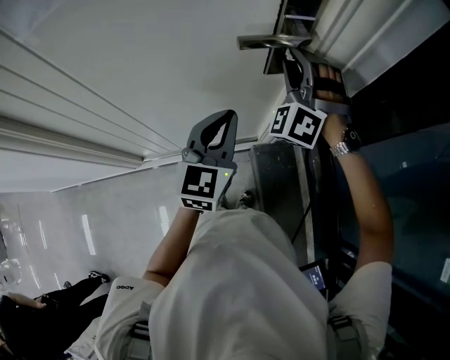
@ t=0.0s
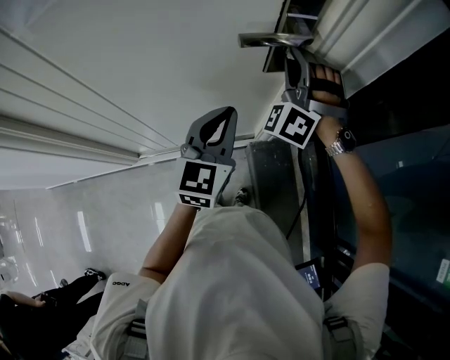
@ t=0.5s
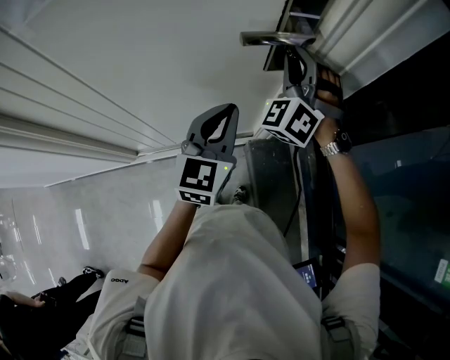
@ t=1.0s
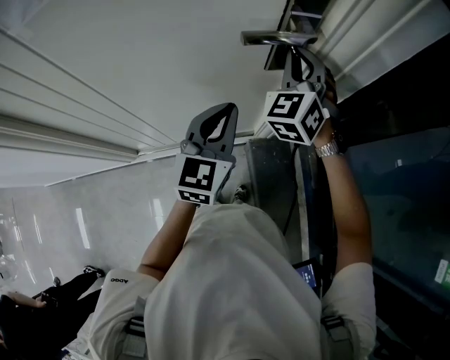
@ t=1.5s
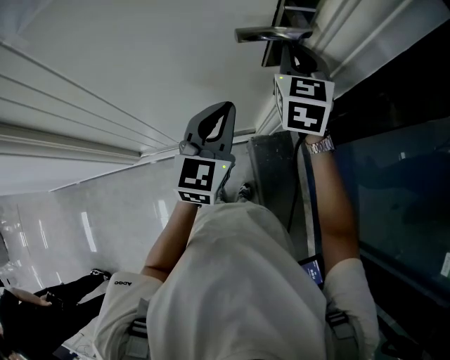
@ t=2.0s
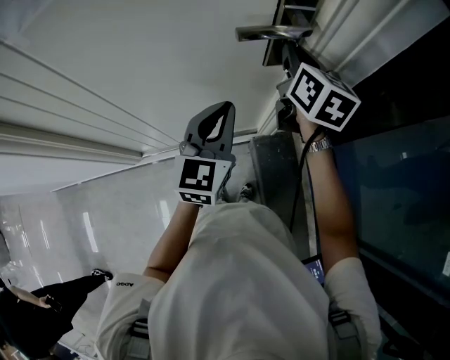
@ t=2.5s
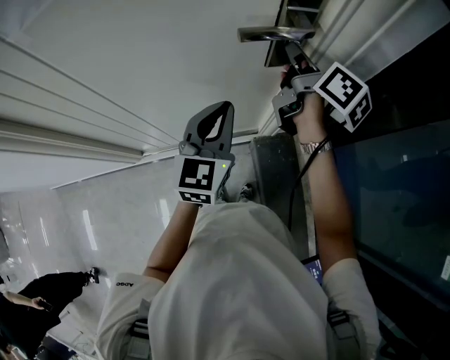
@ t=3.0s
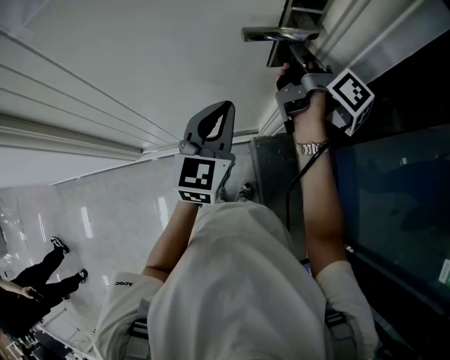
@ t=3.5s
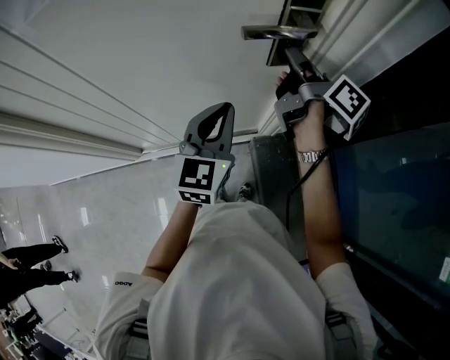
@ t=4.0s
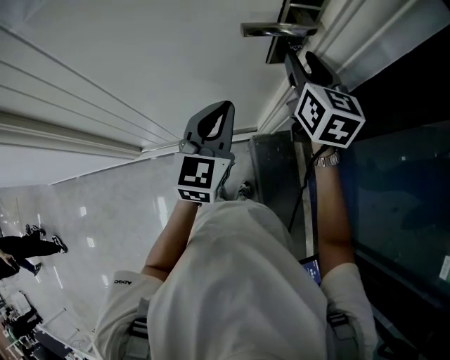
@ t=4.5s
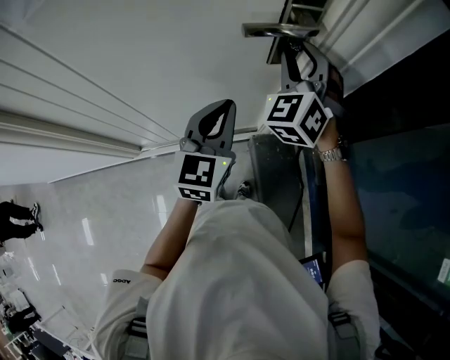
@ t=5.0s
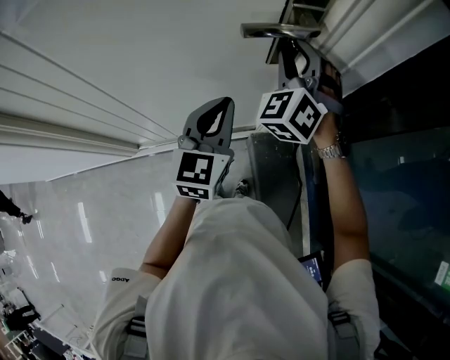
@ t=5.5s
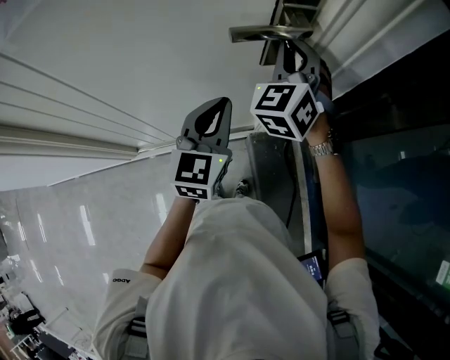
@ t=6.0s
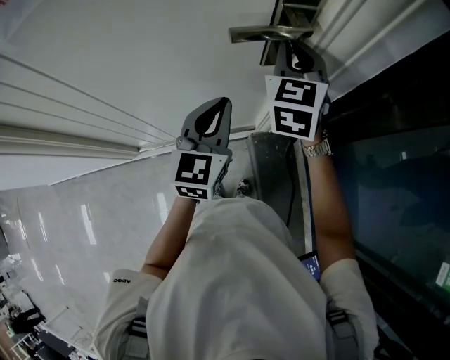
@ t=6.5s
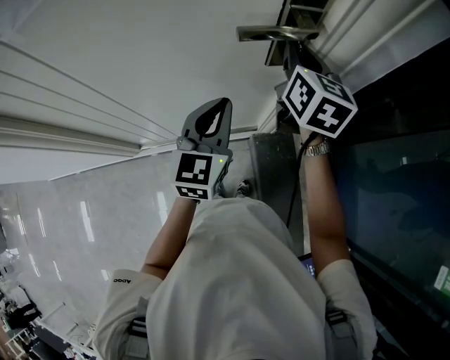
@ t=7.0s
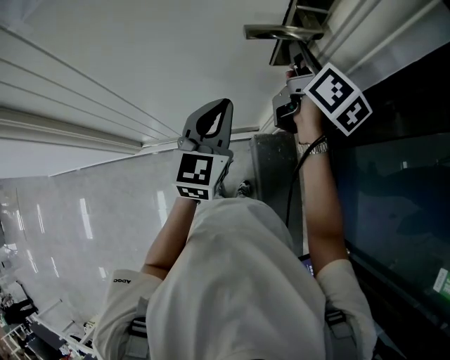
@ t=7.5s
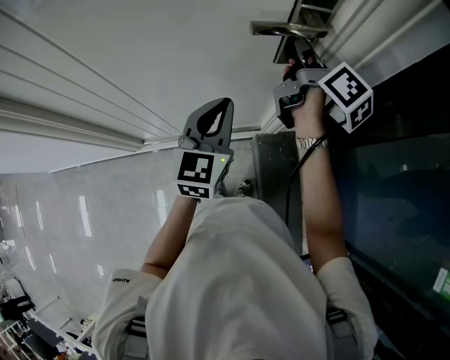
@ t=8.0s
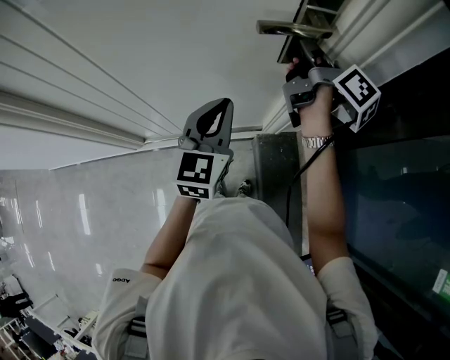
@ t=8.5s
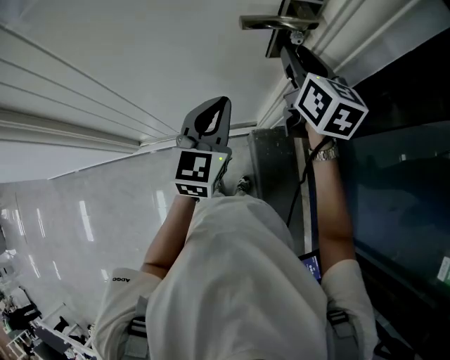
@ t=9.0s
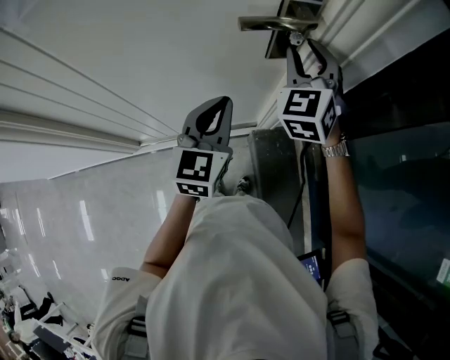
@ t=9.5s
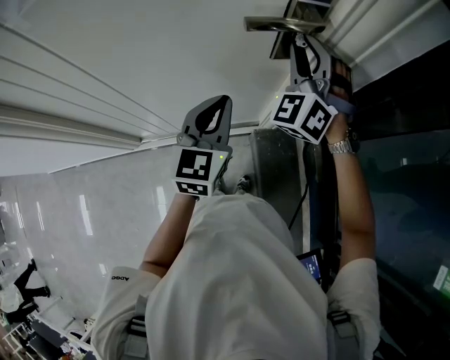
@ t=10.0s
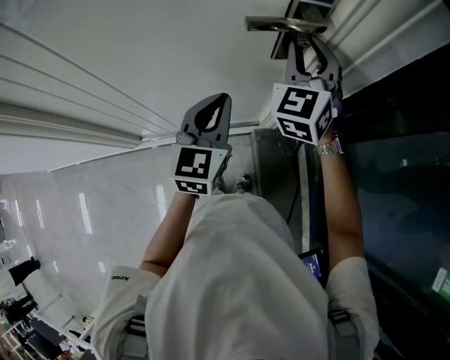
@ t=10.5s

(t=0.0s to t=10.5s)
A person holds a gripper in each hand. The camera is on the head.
t=0.0s - t=2.0s: The right gripper rolls clockwise, seen from behind, by about 70 degrees, and closes up.
t=2.0s - t=4.0s: The right gripper rotates around the line of its fingers by roughly 80 degrees, clockwise from behind.
t=4.0s - t=6.5s: The right gripper rotates around the line of its fingers by roughly 90 degrees, counterclockwise from behind.
t=6.5s - t=8.5s: The right gripper twists about 90 degrees clockwise, seen from behind.
t=8.5s - t=10.5s: The right gripper rotates around the line of its fingers by roughly 100 degrees, counterclockwise from behind, and opens.

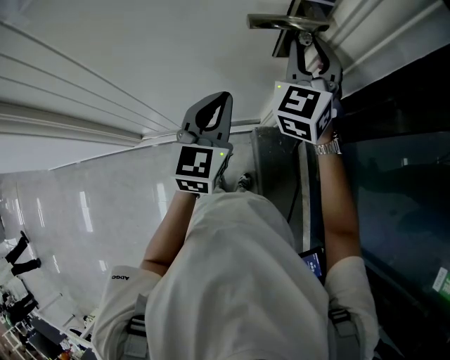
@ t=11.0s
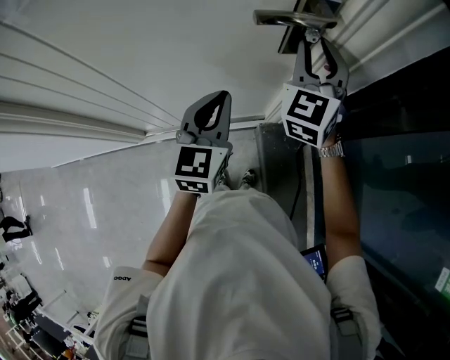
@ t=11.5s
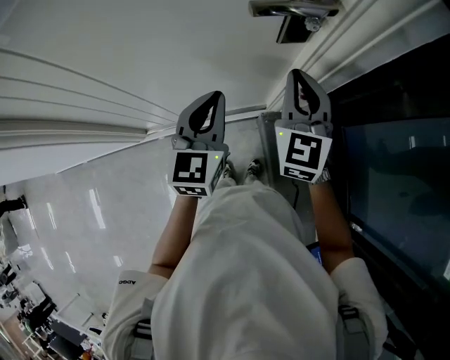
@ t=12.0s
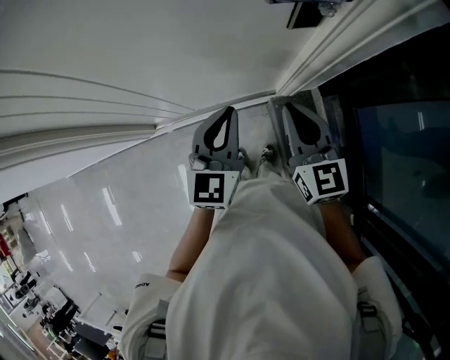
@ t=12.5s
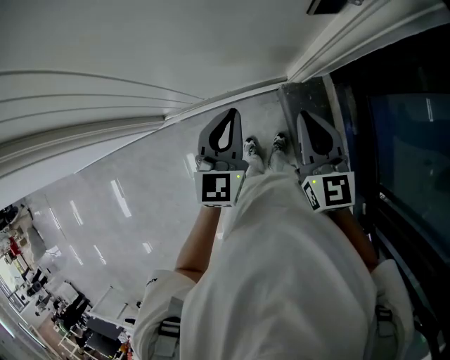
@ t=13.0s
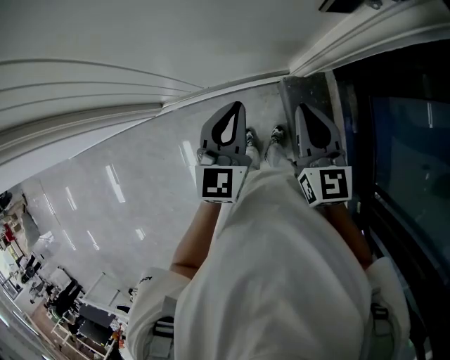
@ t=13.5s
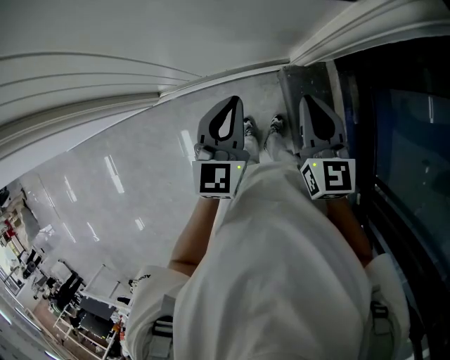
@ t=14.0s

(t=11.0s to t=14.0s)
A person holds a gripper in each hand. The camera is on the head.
t=11.0s - t=12.5s: The right gripper shifts some 20 cm backward and downward, swivels some 40 degrees, and closes its fingers, while the left gripper moves approximately 5 cm.
t=12.5s - t=14.0s: The grippers both shift downward by some 5 cm.

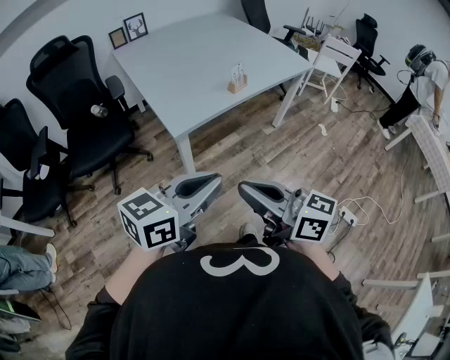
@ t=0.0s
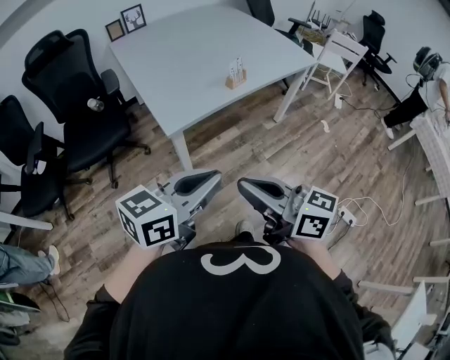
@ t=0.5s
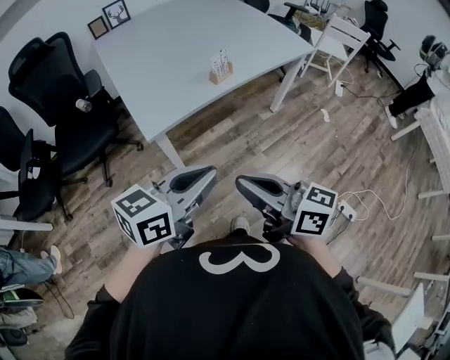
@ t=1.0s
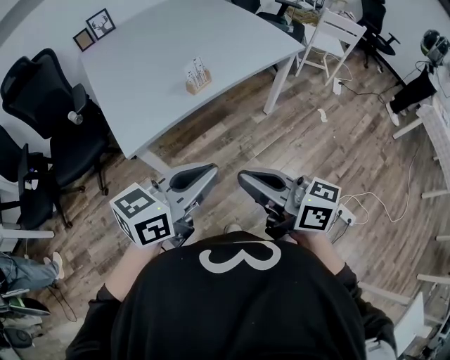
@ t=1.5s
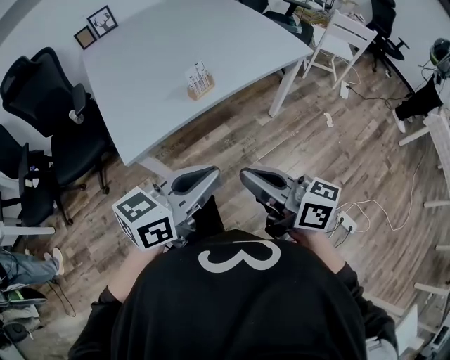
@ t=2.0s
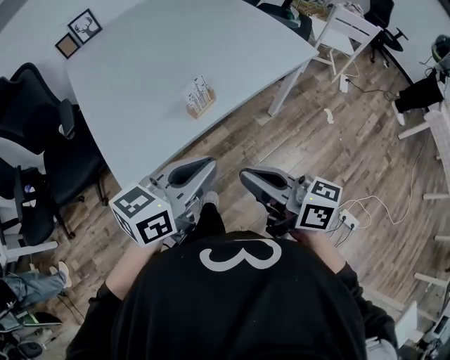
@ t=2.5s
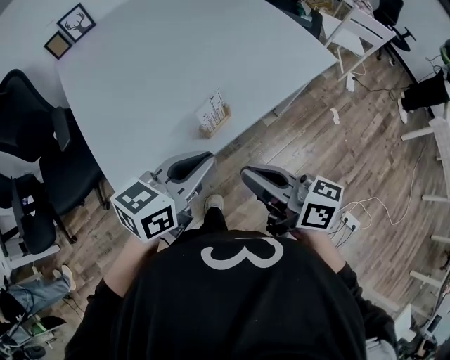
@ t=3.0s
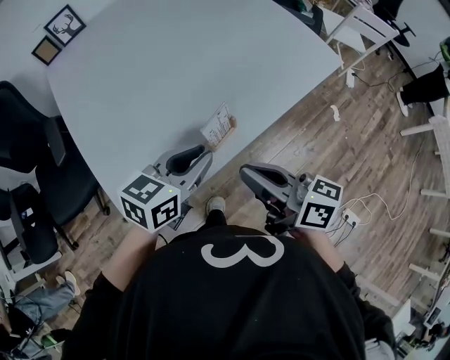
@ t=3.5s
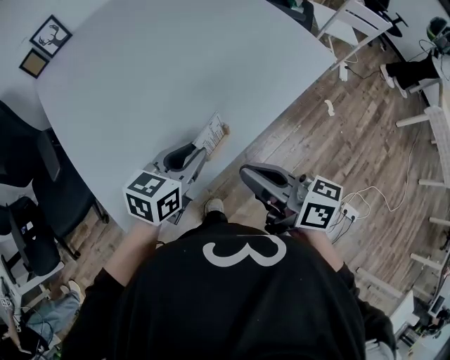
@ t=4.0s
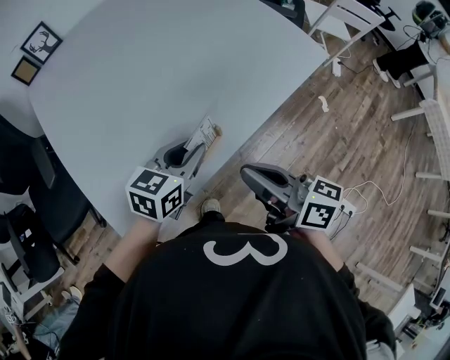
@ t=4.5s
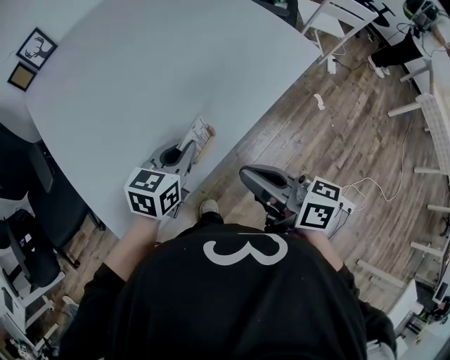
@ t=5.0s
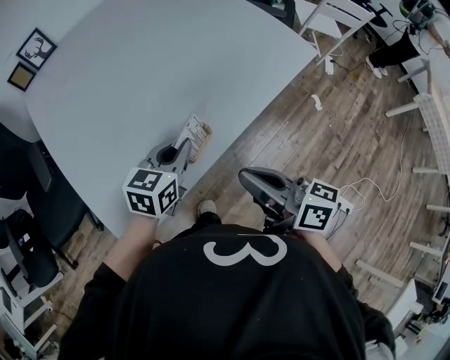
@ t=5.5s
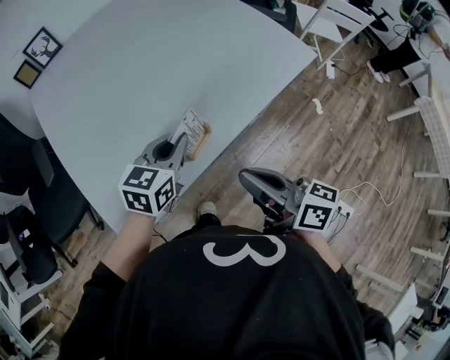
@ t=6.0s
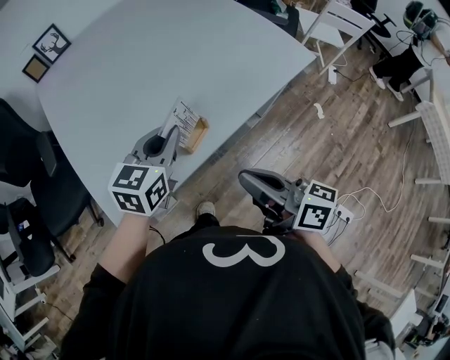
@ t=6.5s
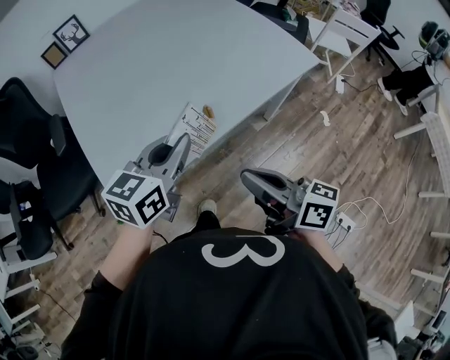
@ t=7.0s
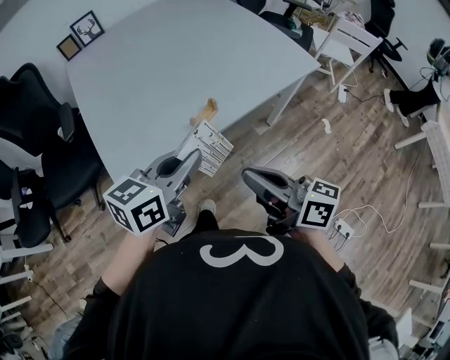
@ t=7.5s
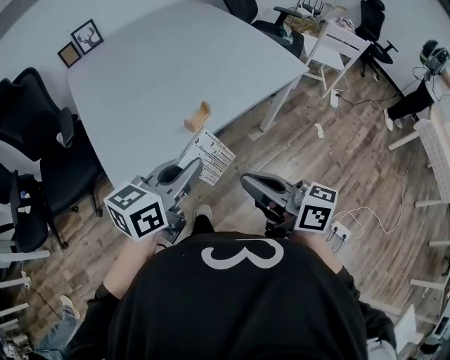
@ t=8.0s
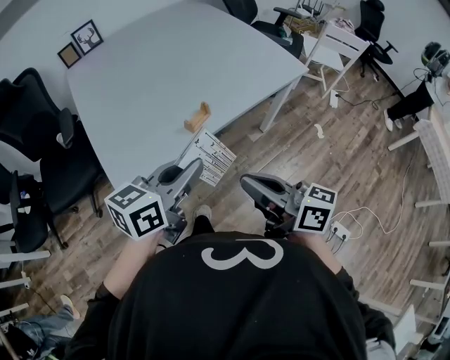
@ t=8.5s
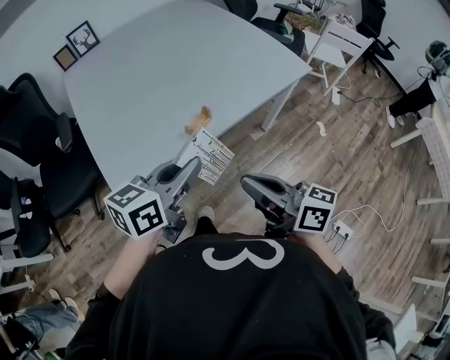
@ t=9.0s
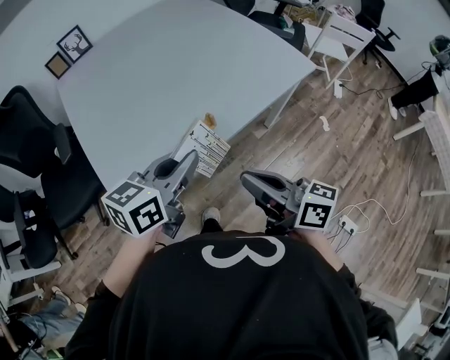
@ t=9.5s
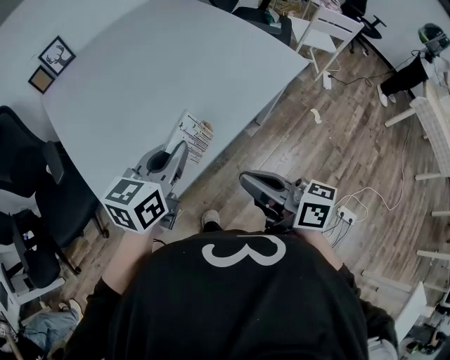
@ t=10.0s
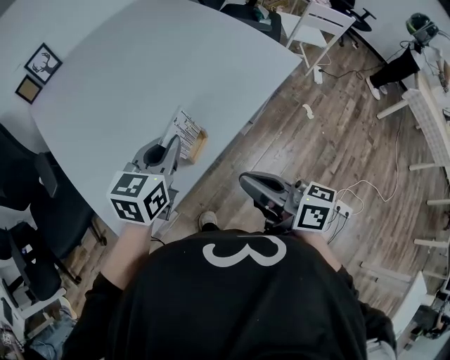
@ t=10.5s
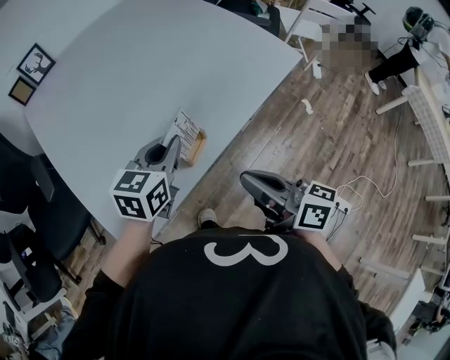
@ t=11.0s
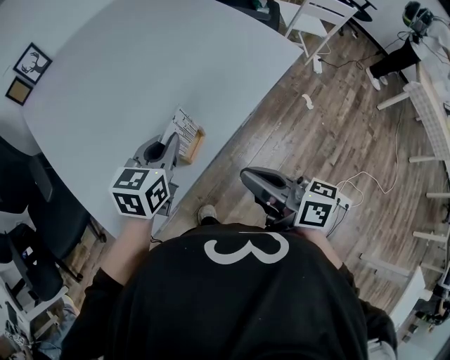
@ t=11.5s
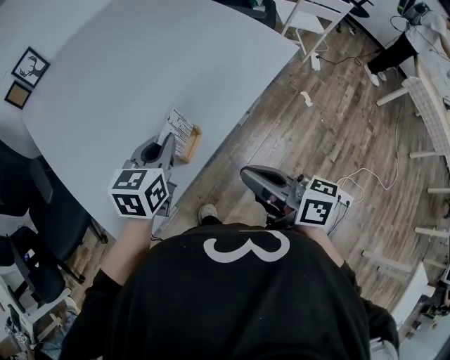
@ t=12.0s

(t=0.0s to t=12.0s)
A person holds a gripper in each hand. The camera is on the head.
t=0.0s - t=2.0s: Both grippers move to the right and forward, some 25 cm.
t=2.0s - t=4.0s: The grippers both shift forward by roughly 30 cm.
t=4.0s - t=6.0s: The right gripper ends up some 5 cm from where it was.
t=6.0s - t=8.0s: The right gripper moves backward, roughly 15 cm; the left gripper travels backward and upward by approximately 25 cm.
t=8.0s - t=10.0s: The grippers both shift forward by about 15 cm.
t=10.0s - t=12.0s: The left gripper is displaced downward and forward by some 10 cm.

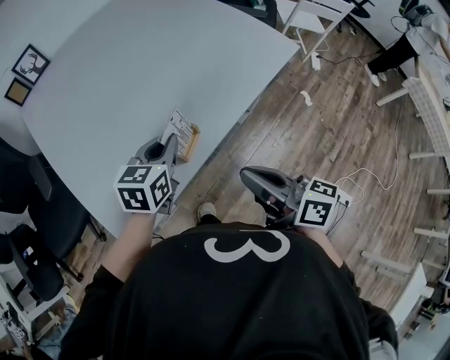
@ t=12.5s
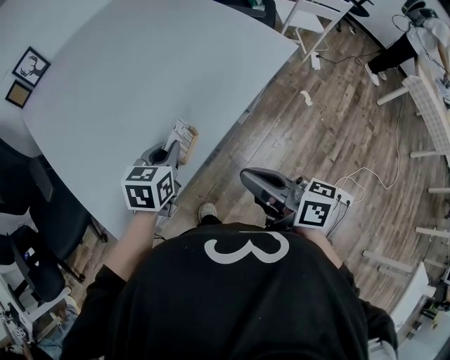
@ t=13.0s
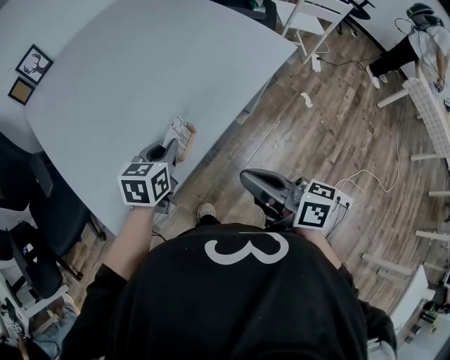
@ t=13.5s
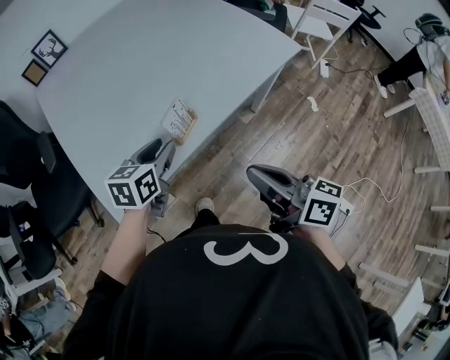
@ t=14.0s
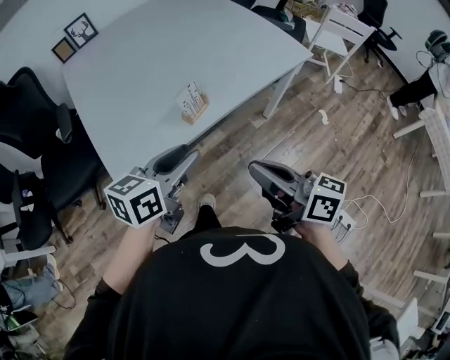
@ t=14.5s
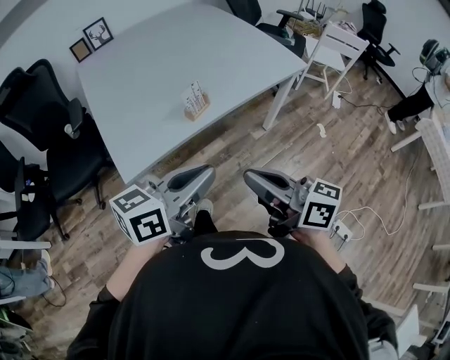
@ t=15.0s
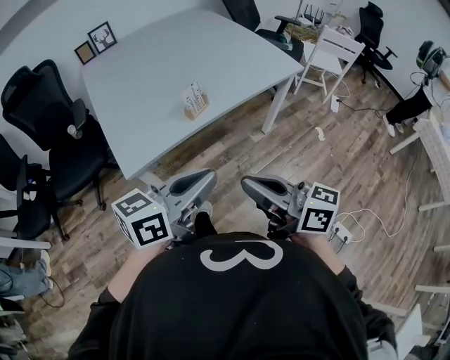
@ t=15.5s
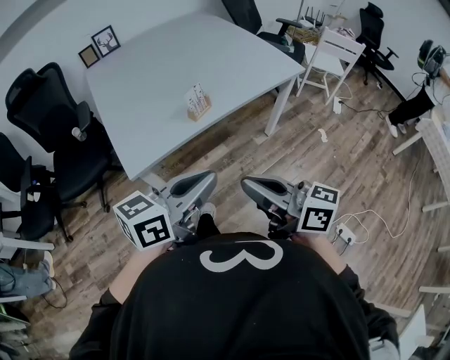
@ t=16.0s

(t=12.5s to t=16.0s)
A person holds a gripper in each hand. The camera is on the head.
t=12.5s - t=14.5s: The right gripper goes about 10 cm backward, while the left gripper goes approximately 20 cm backward, and opens up.
t=14.5s - t=16.0s: The right gripper is displaced backward by about 10 cm. Meanwhile the left gripper travels backward and upward by approximately 15 cm, and closes up.
